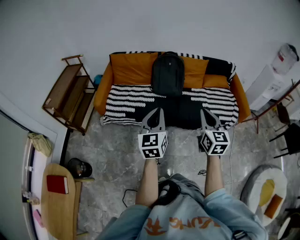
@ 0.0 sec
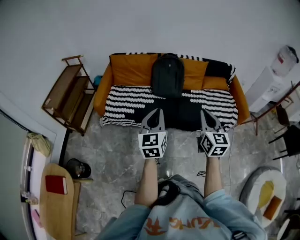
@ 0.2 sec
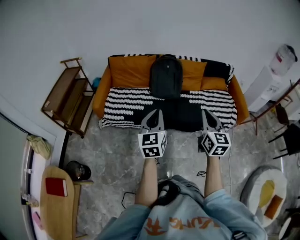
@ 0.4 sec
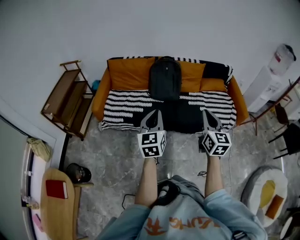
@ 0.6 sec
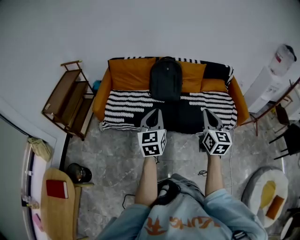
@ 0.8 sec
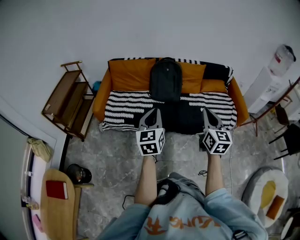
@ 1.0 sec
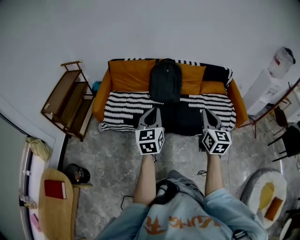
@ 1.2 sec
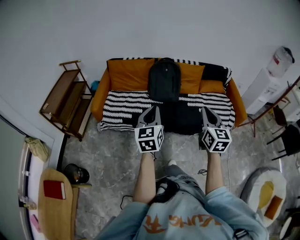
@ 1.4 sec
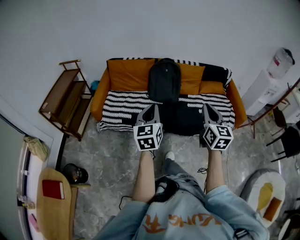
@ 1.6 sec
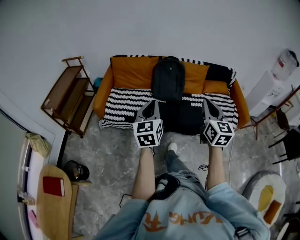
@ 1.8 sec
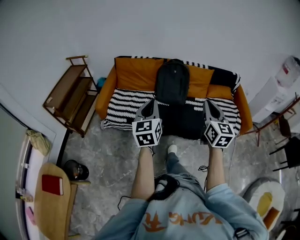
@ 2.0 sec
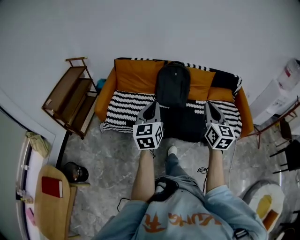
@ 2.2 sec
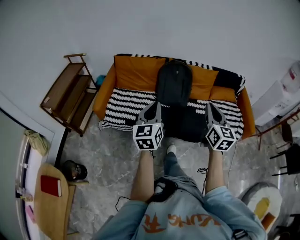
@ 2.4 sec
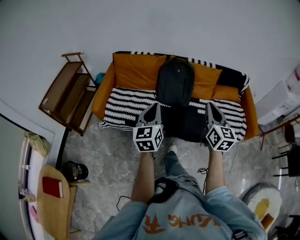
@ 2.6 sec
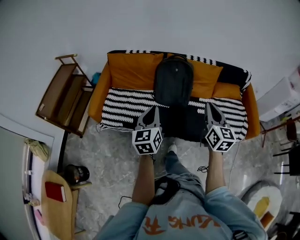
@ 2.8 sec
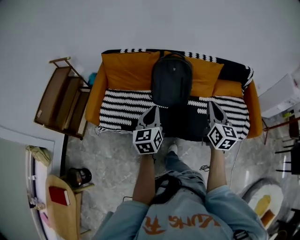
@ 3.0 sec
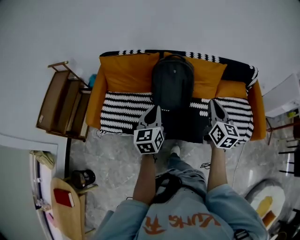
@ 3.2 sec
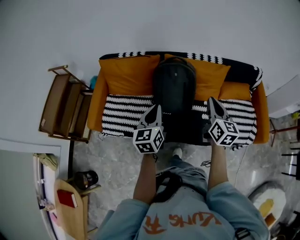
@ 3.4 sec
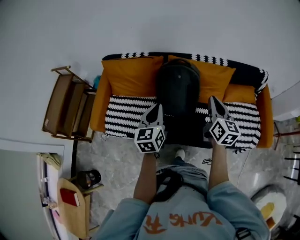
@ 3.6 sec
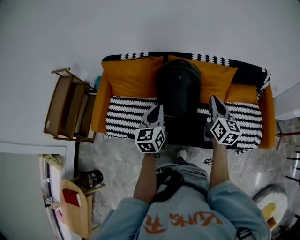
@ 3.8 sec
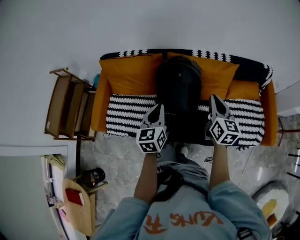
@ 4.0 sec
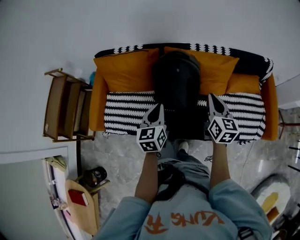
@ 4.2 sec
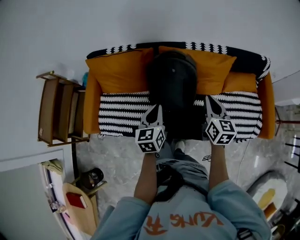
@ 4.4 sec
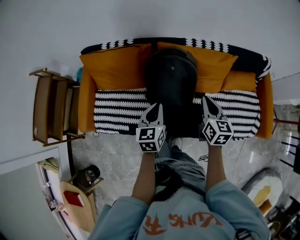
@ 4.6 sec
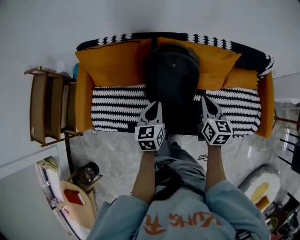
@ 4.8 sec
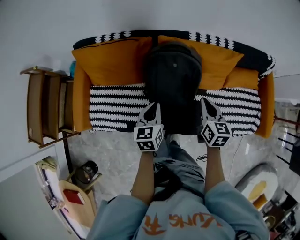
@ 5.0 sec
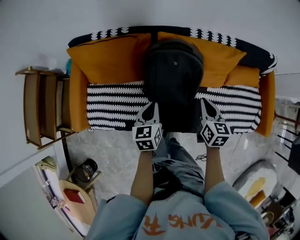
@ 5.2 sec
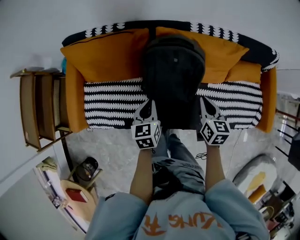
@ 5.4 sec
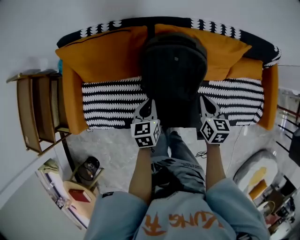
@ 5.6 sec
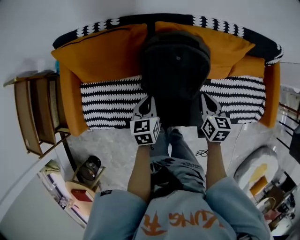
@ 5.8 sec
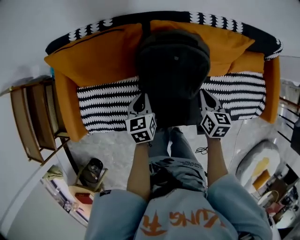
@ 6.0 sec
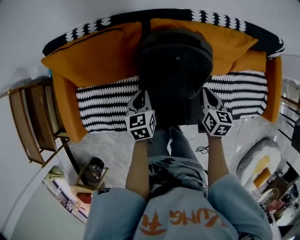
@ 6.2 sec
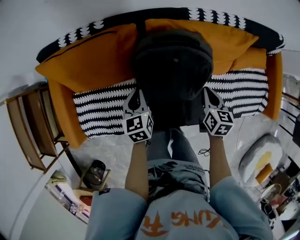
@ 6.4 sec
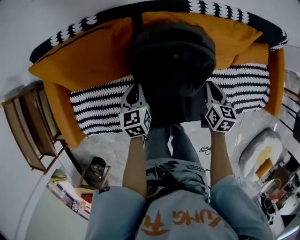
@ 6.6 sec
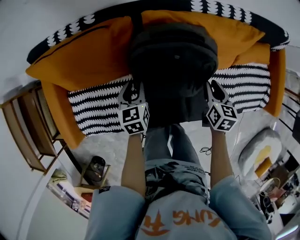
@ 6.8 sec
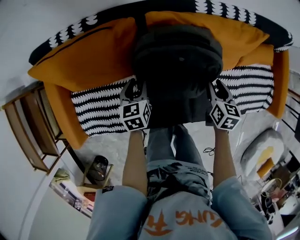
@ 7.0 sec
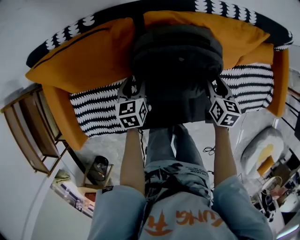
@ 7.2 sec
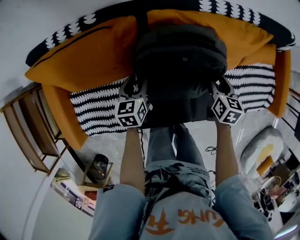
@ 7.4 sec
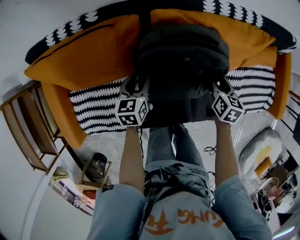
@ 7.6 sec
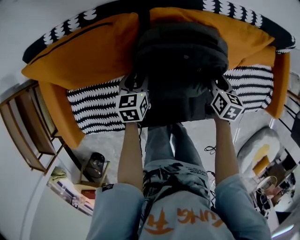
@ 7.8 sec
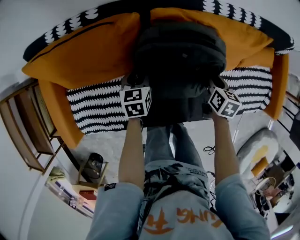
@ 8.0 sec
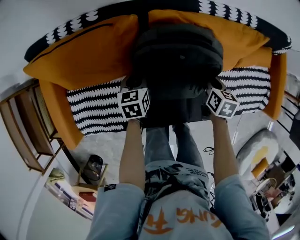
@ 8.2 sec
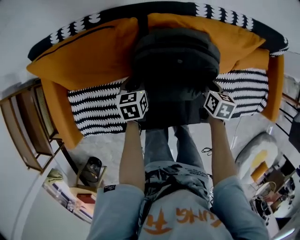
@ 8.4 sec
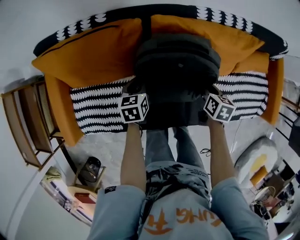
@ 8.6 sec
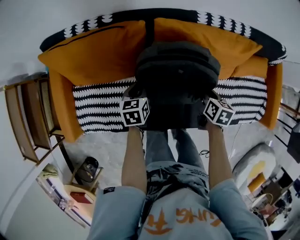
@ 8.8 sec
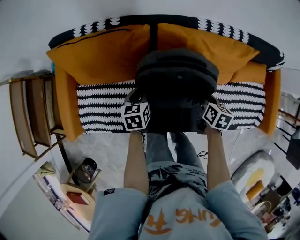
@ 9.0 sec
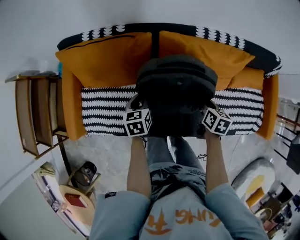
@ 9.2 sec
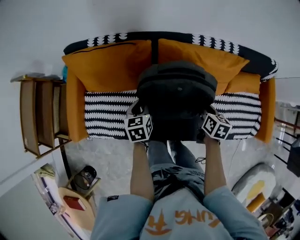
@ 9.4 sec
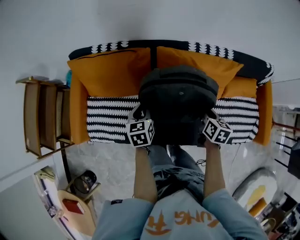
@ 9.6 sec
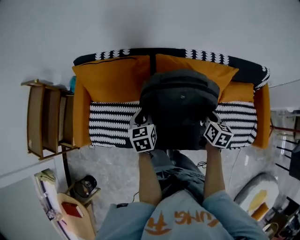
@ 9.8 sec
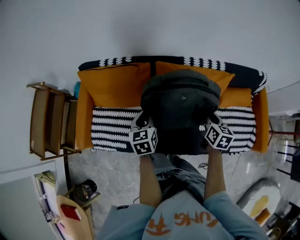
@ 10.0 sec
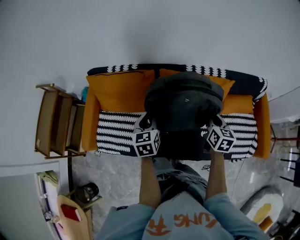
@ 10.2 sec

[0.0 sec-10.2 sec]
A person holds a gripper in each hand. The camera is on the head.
0.0 sec to 1.4 sec: The grippers stay close to where they were, moving slightly.
1.4 sec to 3.0 sec: The two grippers go roughly 30 cm forward.
3.0 sec to 4.4 sec: Both grippers move forward and downward, approximately 25 cm.
4.4 sec to 5.8 sec: The right gripper is displaced downward by roughly 20 cm, and changes its angle by about 20 degrees. The left gripper travels downward and forward by about 20 cm.
5.8 sec to 7.2 sec: Both grippers move downward and forward, about 15 cm. The right gripper opens, while the left gripper opens.
7.2 sec to 8.8 sec: The left gripper ends up about 5 cm from where it was, and closes its fingers; the right gripper closes its fingers.
8.8 sec to 10.2 sec: The two grippers go roughly 25 cm upward. The left gripper changes its angle by about 20 degrees. Meanwhile the right gripper rotates about 30 degrees.

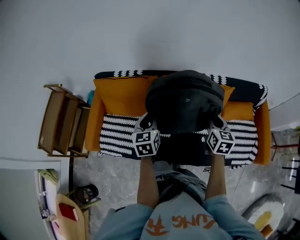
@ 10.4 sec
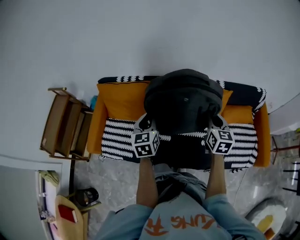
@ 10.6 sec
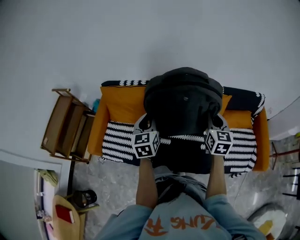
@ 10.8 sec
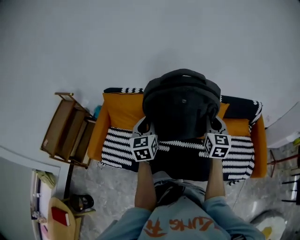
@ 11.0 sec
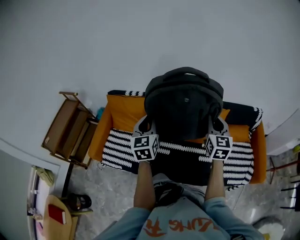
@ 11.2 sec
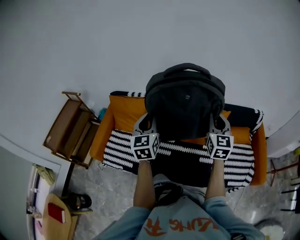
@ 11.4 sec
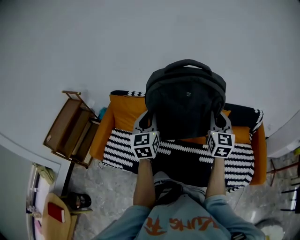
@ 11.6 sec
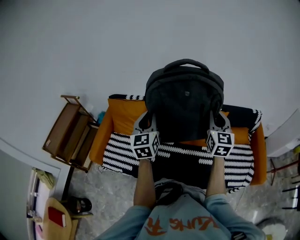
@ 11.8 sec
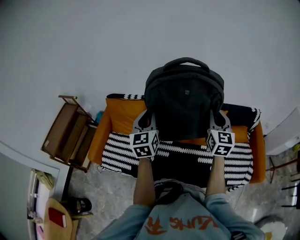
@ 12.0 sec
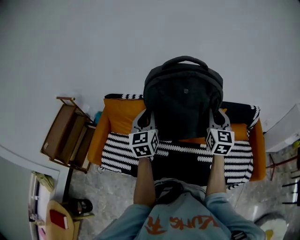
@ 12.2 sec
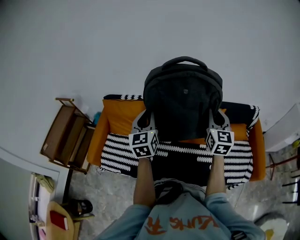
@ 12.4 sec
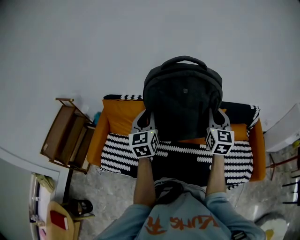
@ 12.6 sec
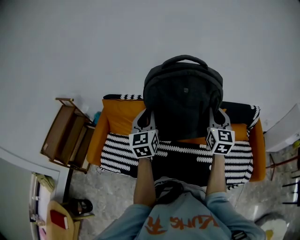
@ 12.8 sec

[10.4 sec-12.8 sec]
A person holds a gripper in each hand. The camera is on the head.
10.4 sec to 11.6 sec: Both grippers travel together upward, about 15 cm. The left gripper rotates approximately 20 degrees, while the right gripper changes its angle by about 30 degrees.
11.6 sec to 12.8 sec: The grippers make only small movements.

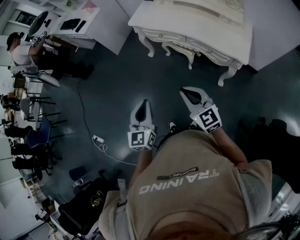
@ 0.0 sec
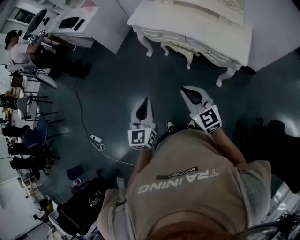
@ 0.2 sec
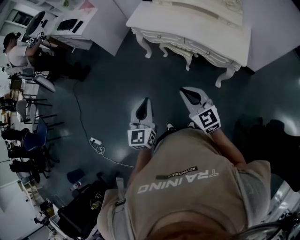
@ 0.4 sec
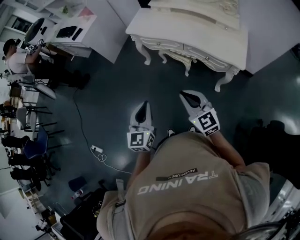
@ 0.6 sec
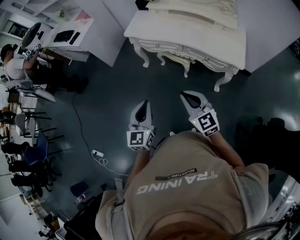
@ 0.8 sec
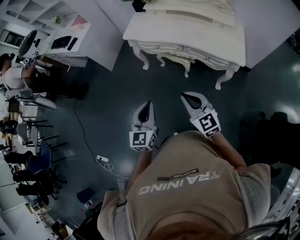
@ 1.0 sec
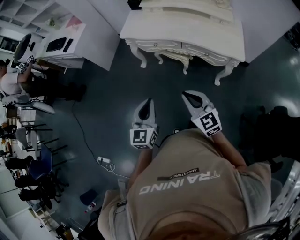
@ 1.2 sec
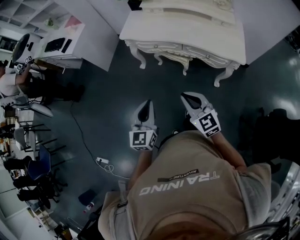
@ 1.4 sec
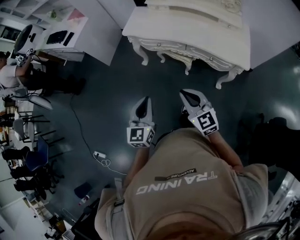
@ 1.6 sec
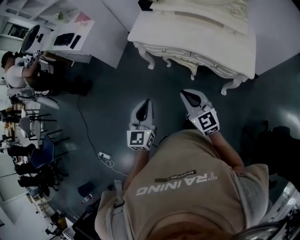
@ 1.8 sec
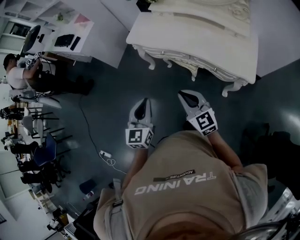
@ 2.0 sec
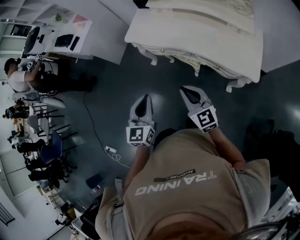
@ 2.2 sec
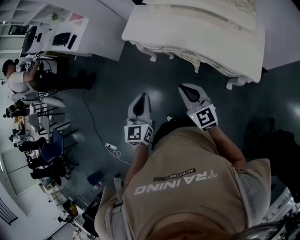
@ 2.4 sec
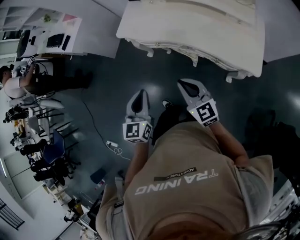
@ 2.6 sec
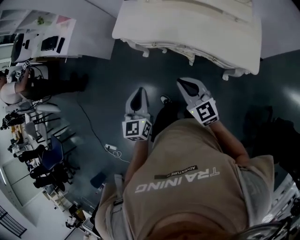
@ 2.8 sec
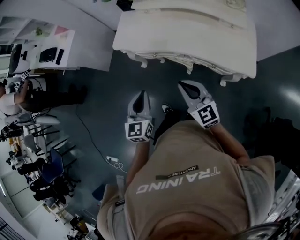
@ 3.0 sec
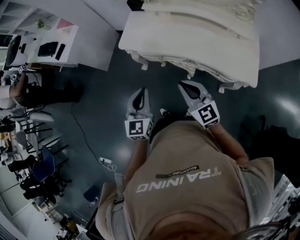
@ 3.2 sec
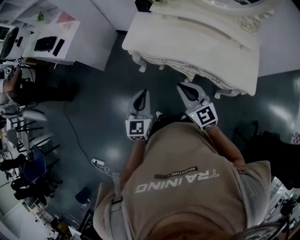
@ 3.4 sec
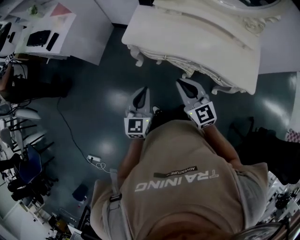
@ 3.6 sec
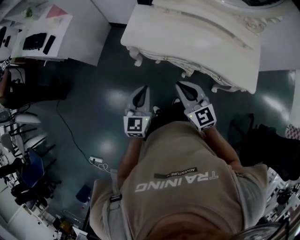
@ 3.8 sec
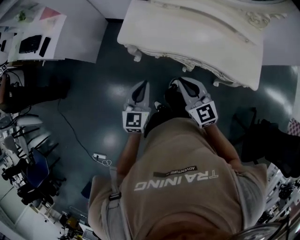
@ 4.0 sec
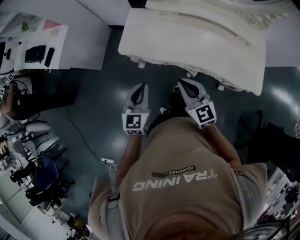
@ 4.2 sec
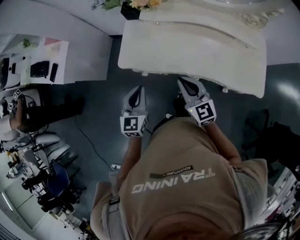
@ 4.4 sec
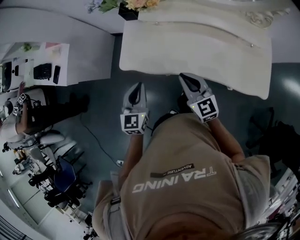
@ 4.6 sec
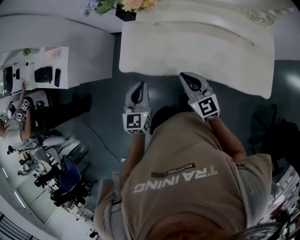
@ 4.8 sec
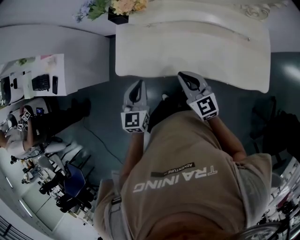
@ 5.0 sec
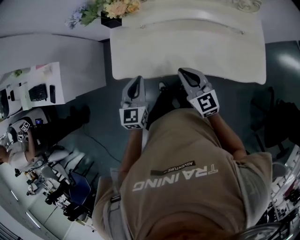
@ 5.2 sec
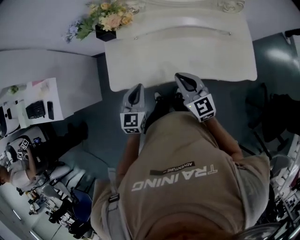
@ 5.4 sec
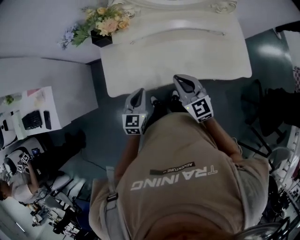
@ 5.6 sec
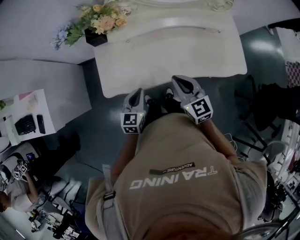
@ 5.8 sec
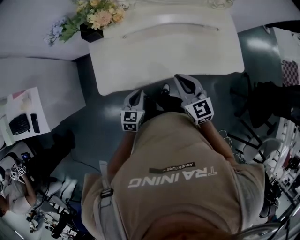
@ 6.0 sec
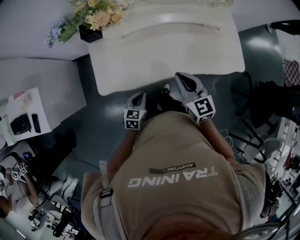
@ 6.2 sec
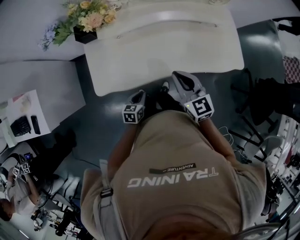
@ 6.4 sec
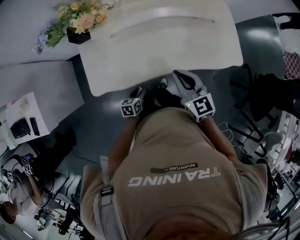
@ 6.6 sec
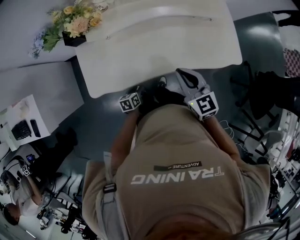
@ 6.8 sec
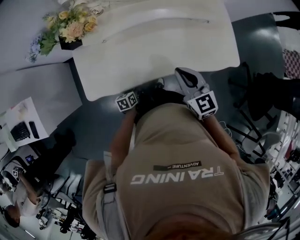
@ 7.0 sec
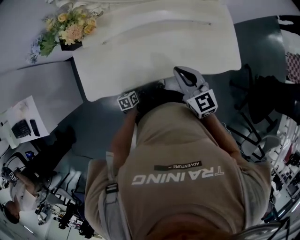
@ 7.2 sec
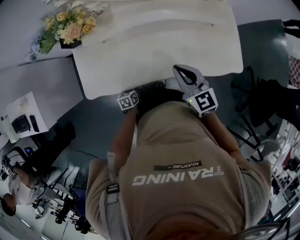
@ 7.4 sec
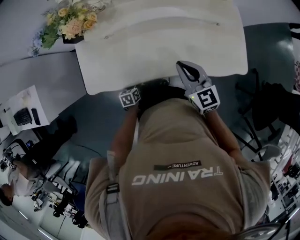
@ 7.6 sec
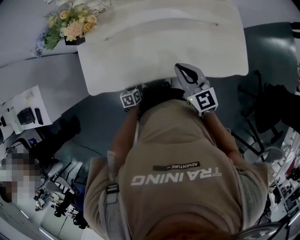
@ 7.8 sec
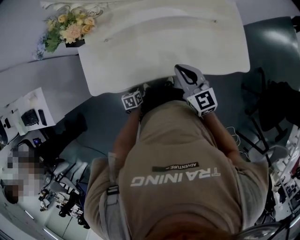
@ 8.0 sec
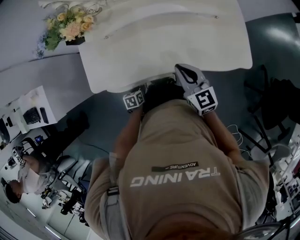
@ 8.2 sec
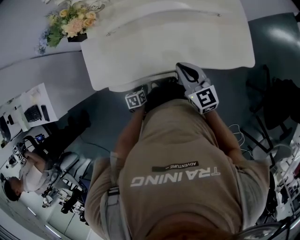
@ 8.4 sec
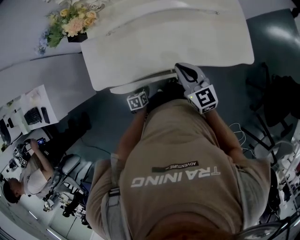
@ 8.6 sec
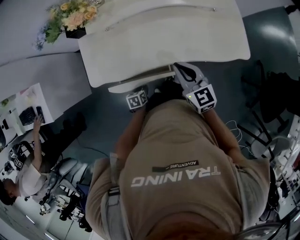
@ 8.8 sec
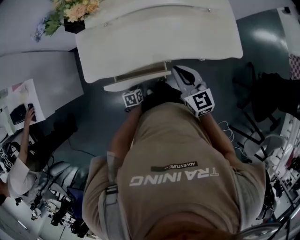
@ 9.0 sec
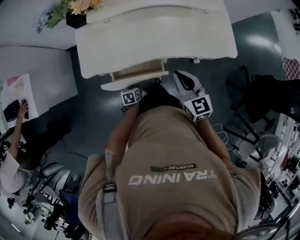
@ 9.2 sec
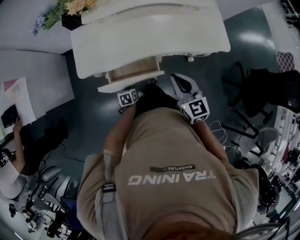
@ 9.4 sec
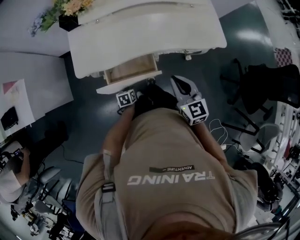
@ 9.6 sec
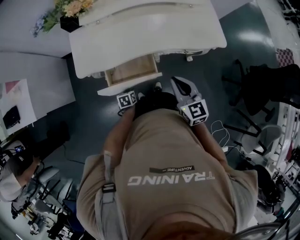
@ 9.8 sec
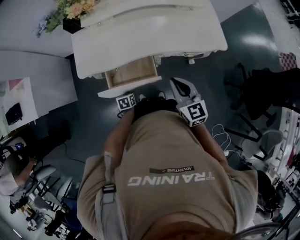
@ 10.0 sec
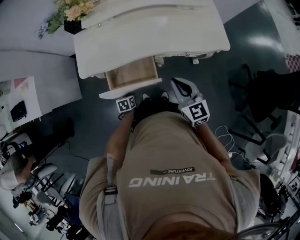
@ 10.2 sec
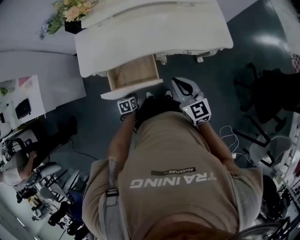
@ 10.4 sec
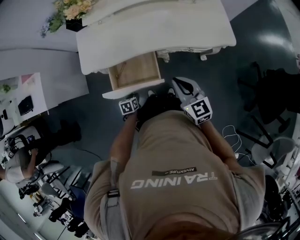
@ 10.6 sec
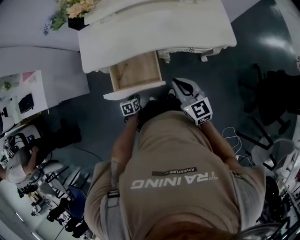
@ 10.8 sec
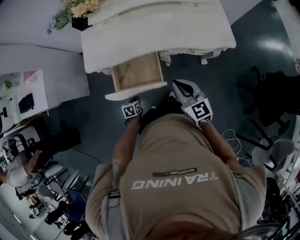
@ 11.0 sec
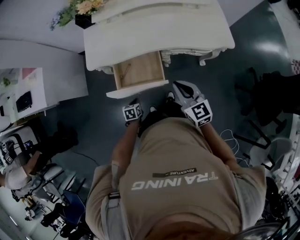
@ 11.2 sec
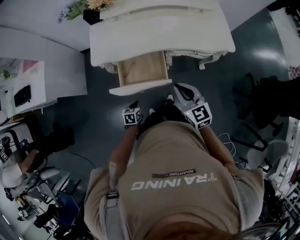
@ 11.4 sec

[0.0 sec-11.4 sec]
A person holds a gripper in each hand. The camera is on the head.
0.0 sec to 1.4 sec: The left gripper is displaced forward by about 10 cm; the right gripper goes about 10 cm forward and to the left.
1.4 sec to 2.8 sec: Both grippers move forward and to the right, some 25 cm.
2.8 sec to 4.2 sec: The grippers both shift forward and to the left by approximately 25 cm.
4.2 sec to 5.6 sec: Both grippers move forward, about 15 cm. The left gripper turns by approximately 20 degrees.
5.6 sec to 7.2 sec: The left gripper moves downward, approximately 30 cm, swivels about 50 degrees, and opens its fingers, while the right gripper travels to the right and forward by approximately 15 cm.
7.2 sec to 8.6 sec: The right gripper changes place by roughly 5 cm; the left gripper heads backward, covering about 5 cm.
8.6 sec to 10.0 sec: The left gripper travels backward by roughly 15 cm. The right gripper is displaced backward by some 20 cm.
10.0 sec to 11.4 sec: The right gripper is displaced backward by about 10 cm. Meanwhile the left gripper goes roughly 15 cm backward and upward, and closes.
